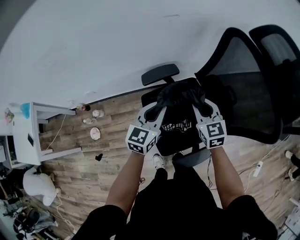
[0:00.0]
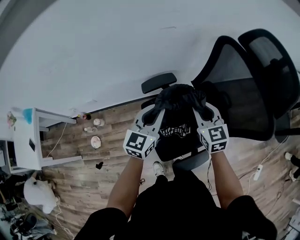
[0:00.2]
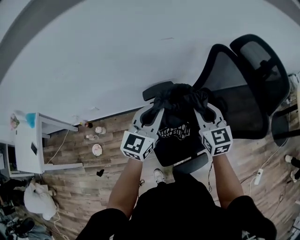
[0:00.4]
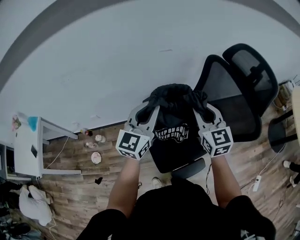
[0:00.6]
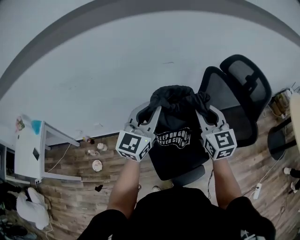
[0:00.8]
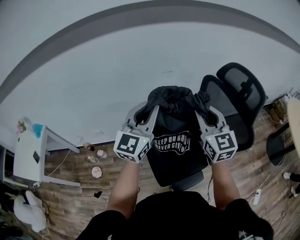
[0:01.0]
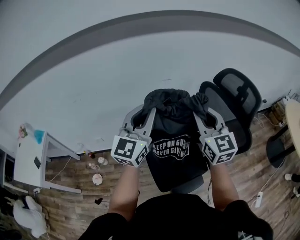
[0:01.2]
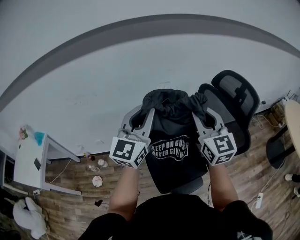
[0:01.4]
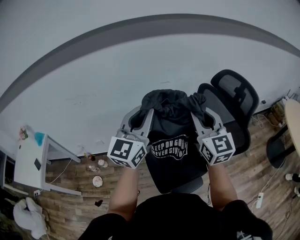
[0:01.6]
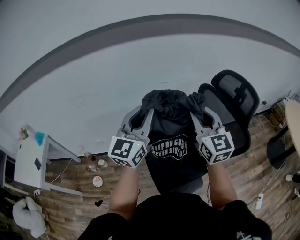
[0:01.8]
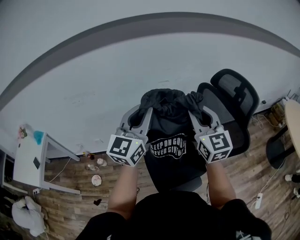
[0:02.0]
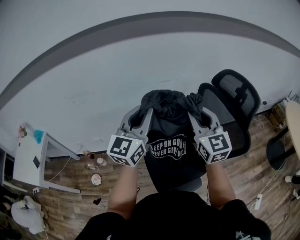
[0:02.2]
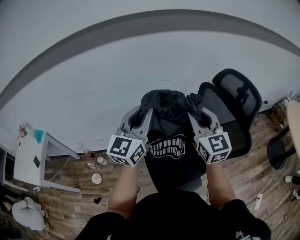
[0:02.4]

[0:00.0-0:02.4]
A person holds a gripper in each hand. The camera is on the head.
0:00.0 to 0:01.2: Both grippers travel together upward, some 35 cm. The left gripper turns by some 30 degrees. The right gripper changes its angle by some 30 degrees.
0:01.2 to 0:02.4: The grippers move only a little.

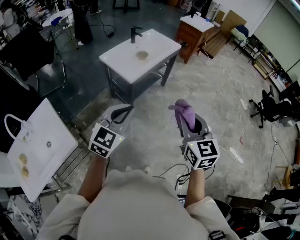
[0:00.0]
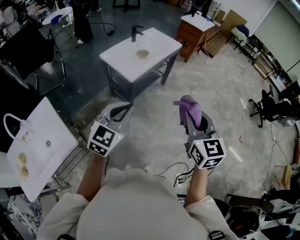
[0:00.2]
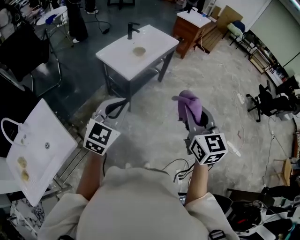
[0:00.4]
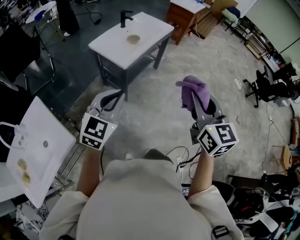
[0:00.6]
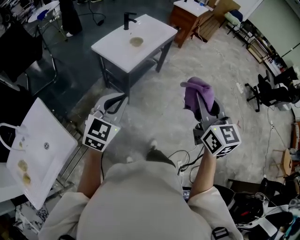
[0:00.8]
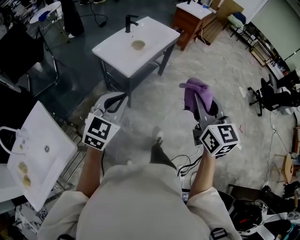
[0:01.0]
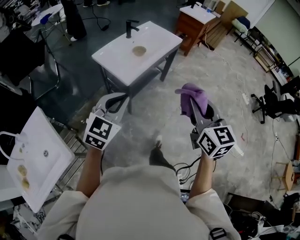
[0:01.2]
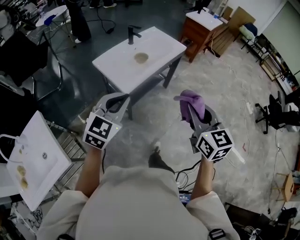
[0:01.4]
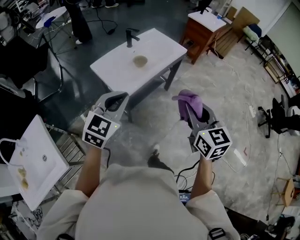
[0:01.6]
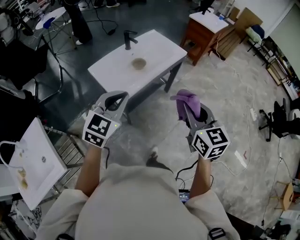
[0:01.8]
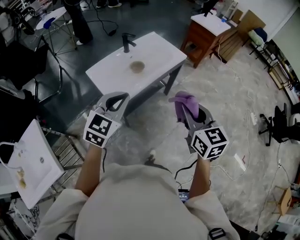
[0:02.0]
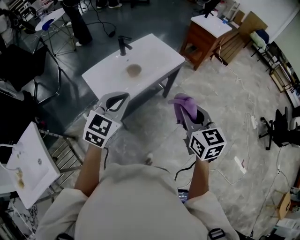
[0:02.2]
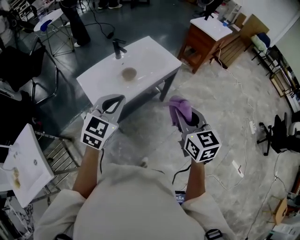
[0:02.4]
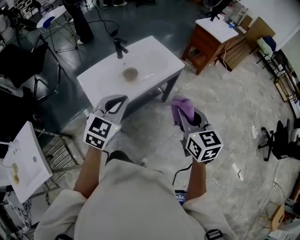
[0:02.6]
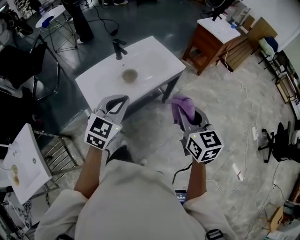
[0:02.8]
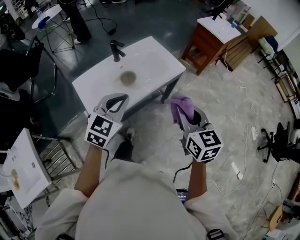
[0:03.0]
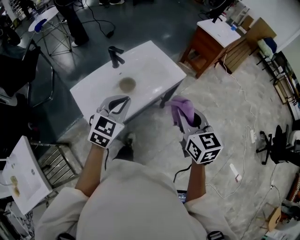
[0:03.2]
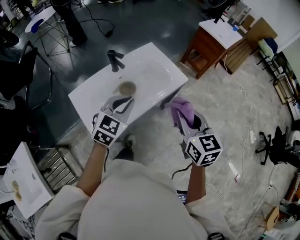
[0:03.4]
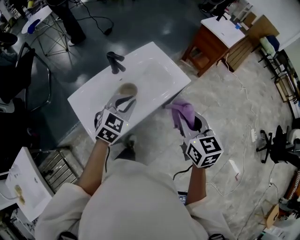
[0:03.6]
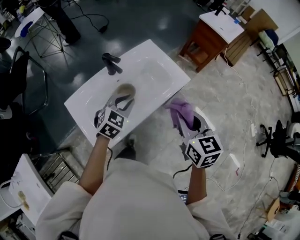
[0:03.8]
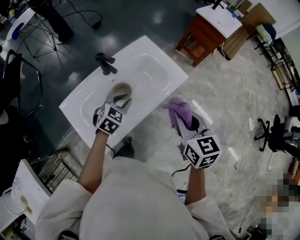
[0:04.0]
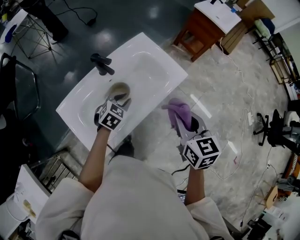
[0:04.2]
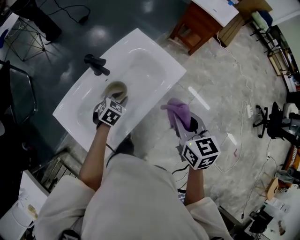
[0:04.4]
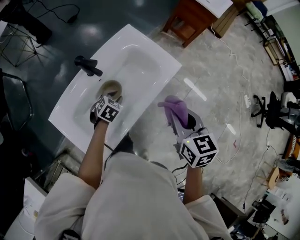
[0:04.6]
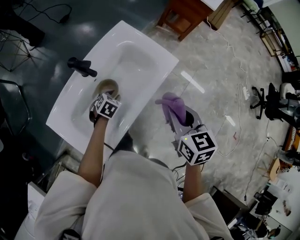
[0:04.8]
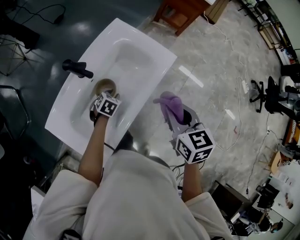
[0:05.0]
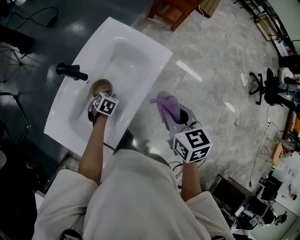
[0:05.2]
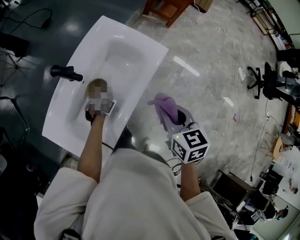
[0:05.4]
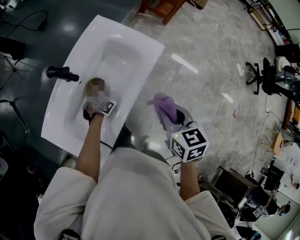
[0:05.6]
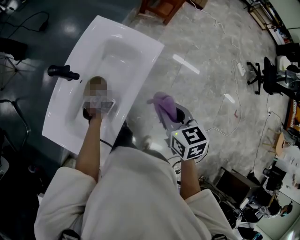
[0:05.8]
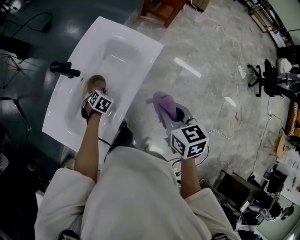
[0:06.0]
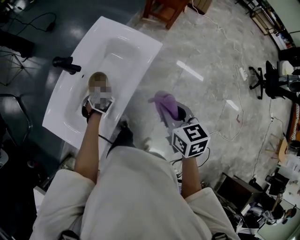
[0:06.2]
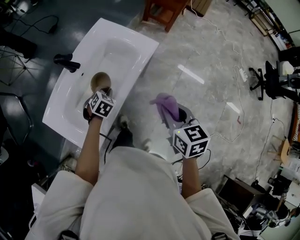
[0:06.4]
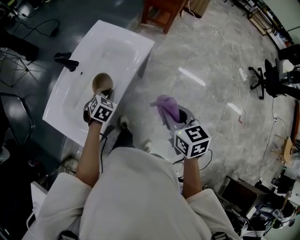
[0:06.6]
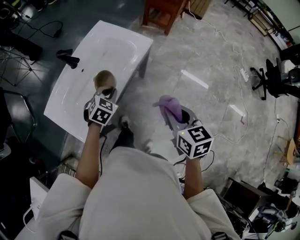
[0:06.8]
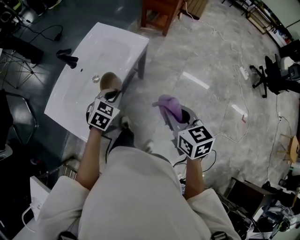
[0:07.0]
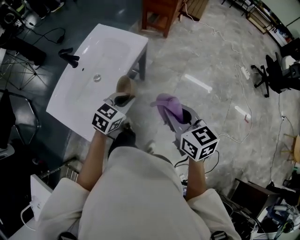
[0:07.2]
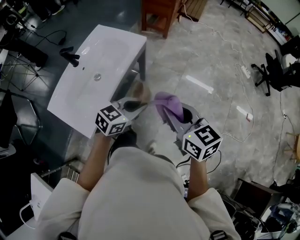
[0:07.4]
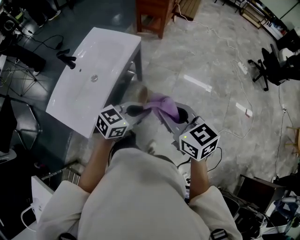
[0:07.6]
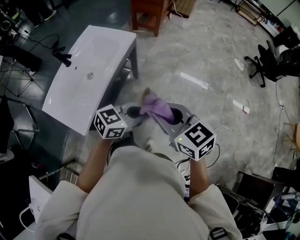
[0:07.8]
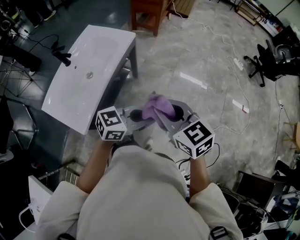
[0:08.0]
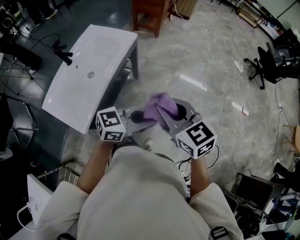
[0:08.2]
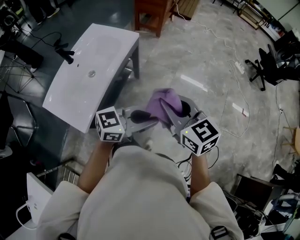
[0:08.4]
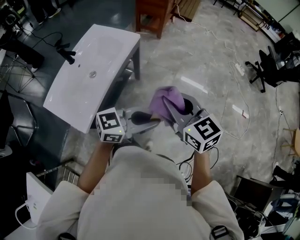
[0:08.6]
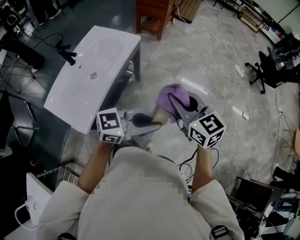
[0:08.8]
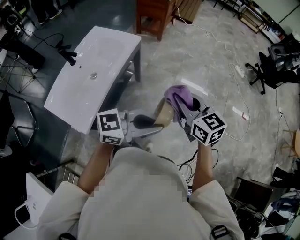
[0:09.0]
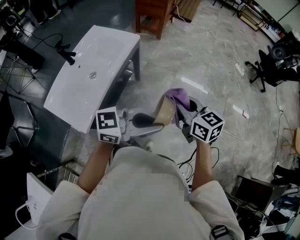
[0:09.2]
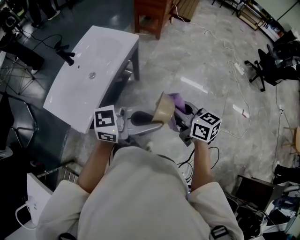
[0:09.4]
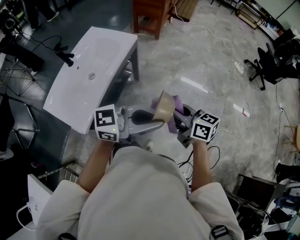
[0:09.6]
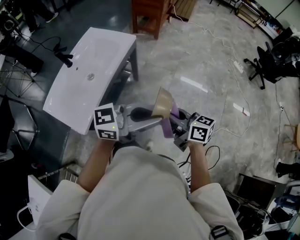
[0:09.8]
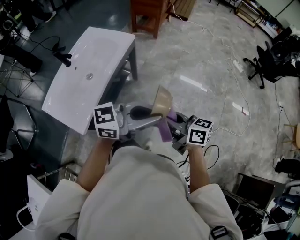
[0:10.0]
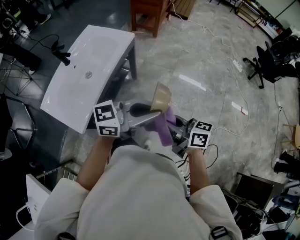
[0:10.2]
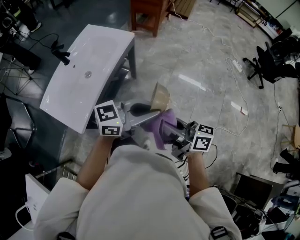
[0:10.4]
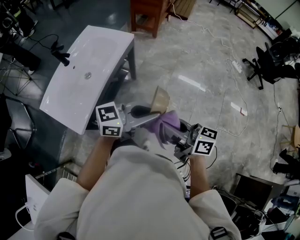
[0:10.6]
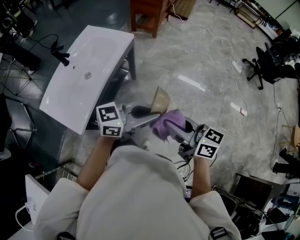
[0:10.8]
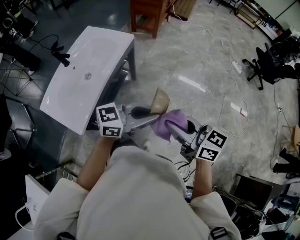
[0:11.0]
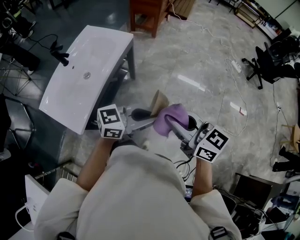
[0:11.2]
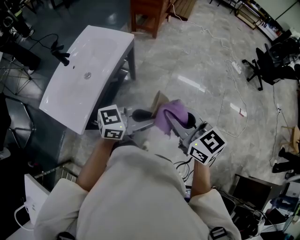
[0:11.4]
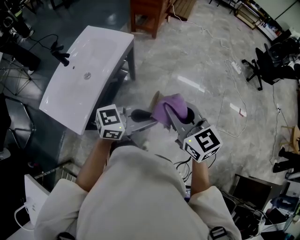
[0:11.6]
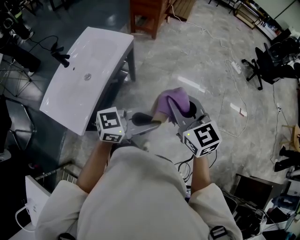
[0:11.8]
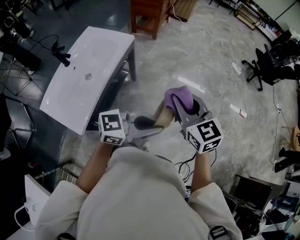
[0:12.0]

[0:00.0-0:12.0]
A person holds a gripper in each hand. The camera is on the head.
0:00.0 to 0:01.6: Both grippers move forward, approximately 30 cm.
0:01.6 to 0:03.0: The left gripper shifts roughly 30 cm forward and to the right, while the right gripper goes about 30 cm forward.
0:03.0 to 0:04.4: The right gripper shifts approximately 20 cm forward; the left gripper heads forward and downward, covering approximately 40 cm, swivels approximately 30 degrees, and opens.
0:04.4 to 0:06.0: The left gripper shifts approximately 15 cm downward, turns by roughly 20 degrees, and closes its fingers. Meanwhile the right gripper is displaced downward by some 5 cm.
0:06.0 to 0:07.6: The left gripper goes roughly 60 cm to the right, backward and upward, and angles its fingers upward, by about 50 degrees; the right gripper travels backward and to the right by about 30 cm, and swivels approximately 20 degrees.
0:07.6 to 0:09.0: The left gripper moves upward, backward and to the right, approximately 15 cm, and changes its angle by roughly 30 degrees, while the right gripper heads to the right, covering about 5 cm.
0:09.0 to 0:10.4: The right gripper shifts by about 10 cm, and changes its angle by approximately 50 degrees.
0:10.4 to 0:12.0: The left gripper changes place by about 5 cm; the right gripper ends up about 10 cm from where it was, and swivels some 60 degrees.

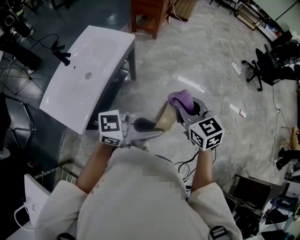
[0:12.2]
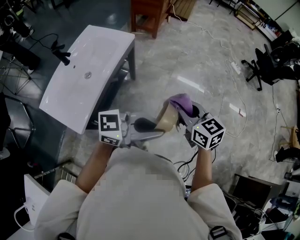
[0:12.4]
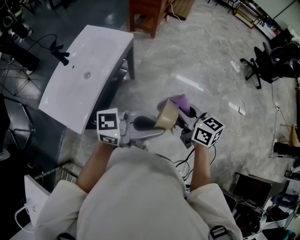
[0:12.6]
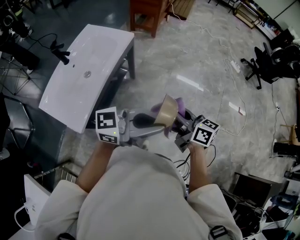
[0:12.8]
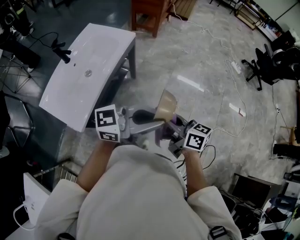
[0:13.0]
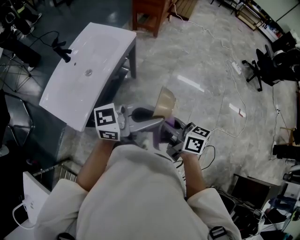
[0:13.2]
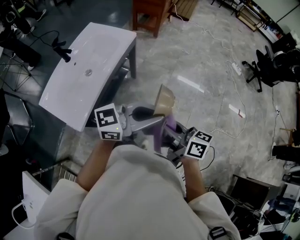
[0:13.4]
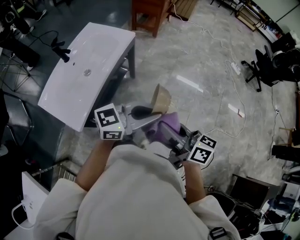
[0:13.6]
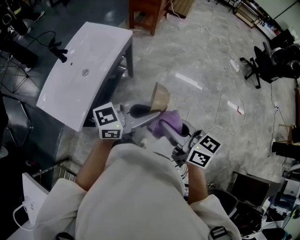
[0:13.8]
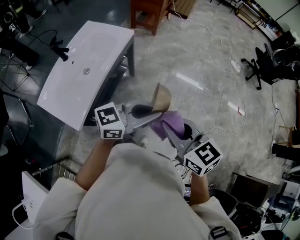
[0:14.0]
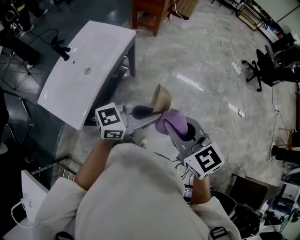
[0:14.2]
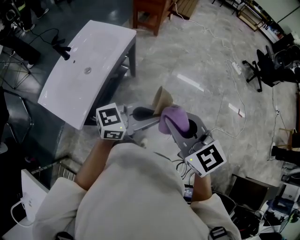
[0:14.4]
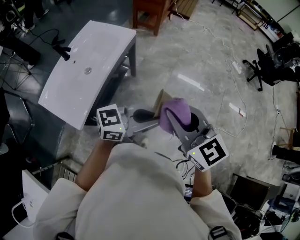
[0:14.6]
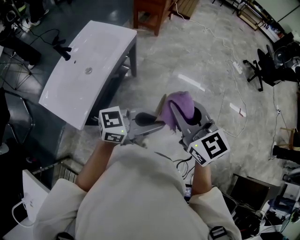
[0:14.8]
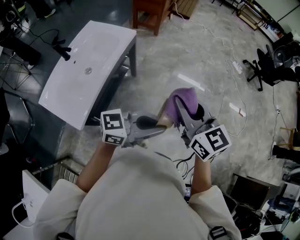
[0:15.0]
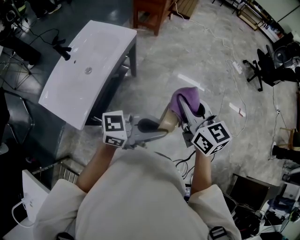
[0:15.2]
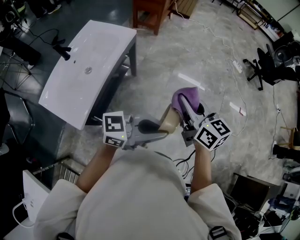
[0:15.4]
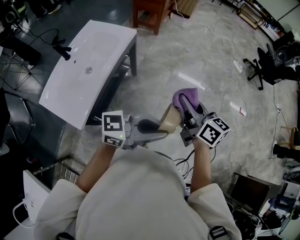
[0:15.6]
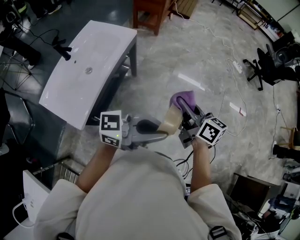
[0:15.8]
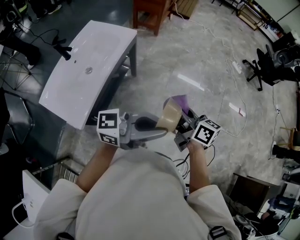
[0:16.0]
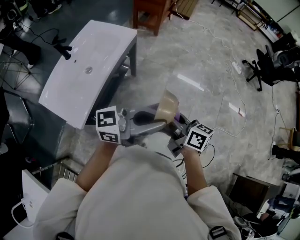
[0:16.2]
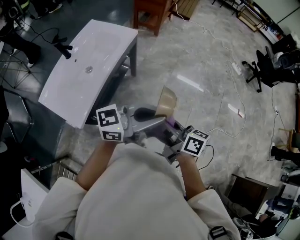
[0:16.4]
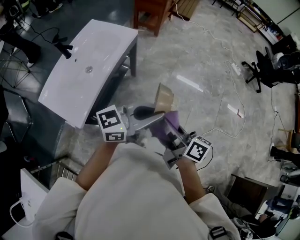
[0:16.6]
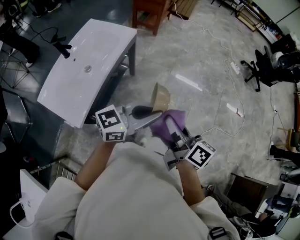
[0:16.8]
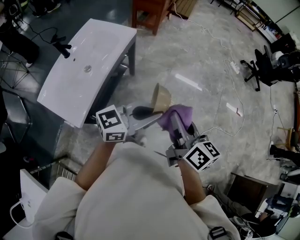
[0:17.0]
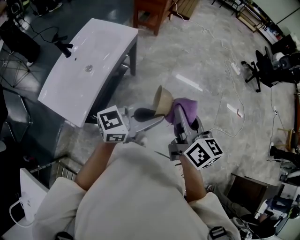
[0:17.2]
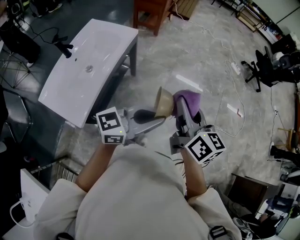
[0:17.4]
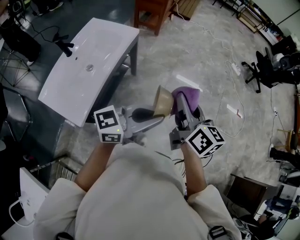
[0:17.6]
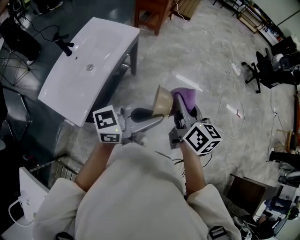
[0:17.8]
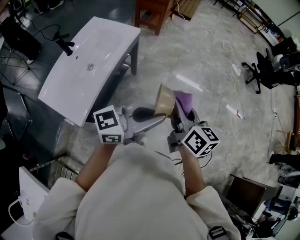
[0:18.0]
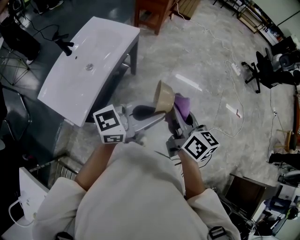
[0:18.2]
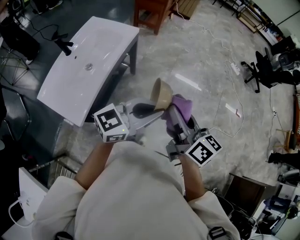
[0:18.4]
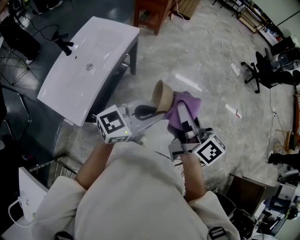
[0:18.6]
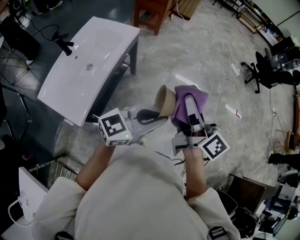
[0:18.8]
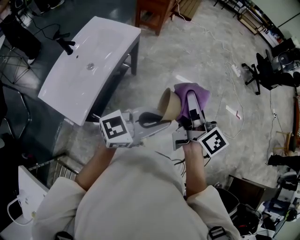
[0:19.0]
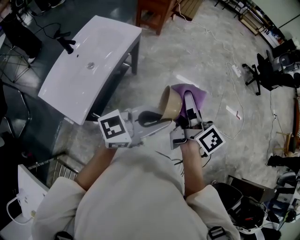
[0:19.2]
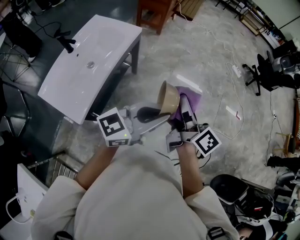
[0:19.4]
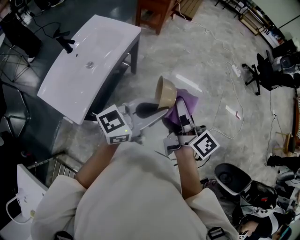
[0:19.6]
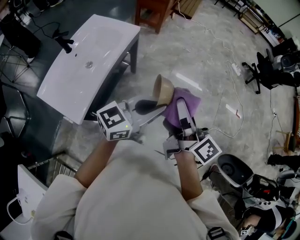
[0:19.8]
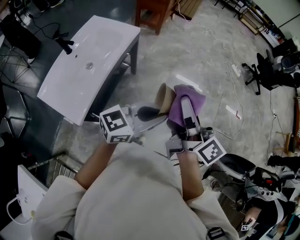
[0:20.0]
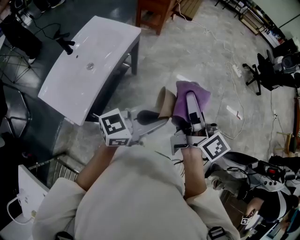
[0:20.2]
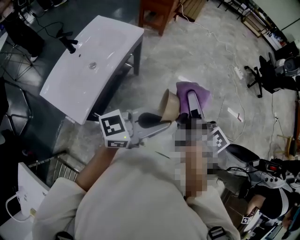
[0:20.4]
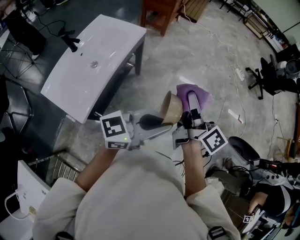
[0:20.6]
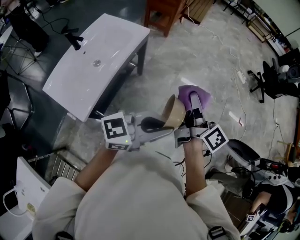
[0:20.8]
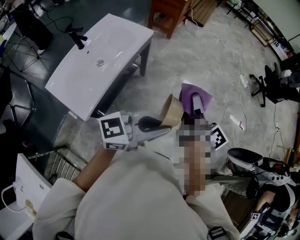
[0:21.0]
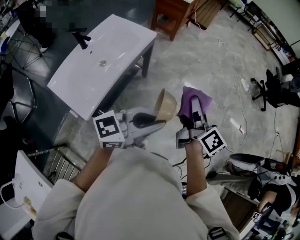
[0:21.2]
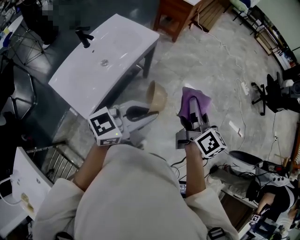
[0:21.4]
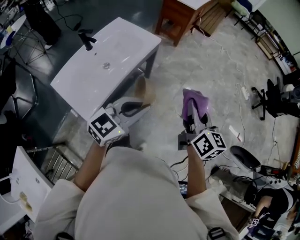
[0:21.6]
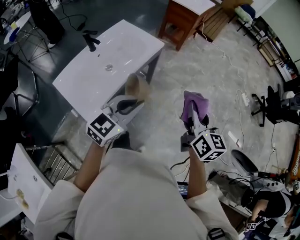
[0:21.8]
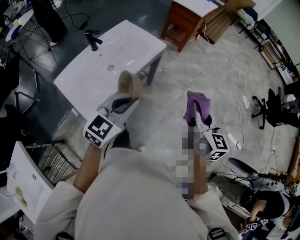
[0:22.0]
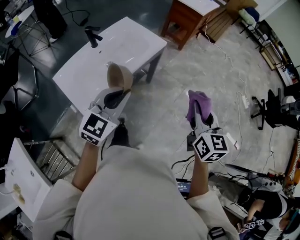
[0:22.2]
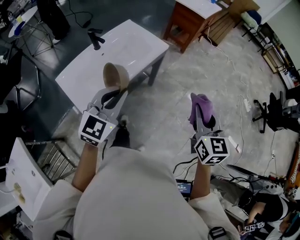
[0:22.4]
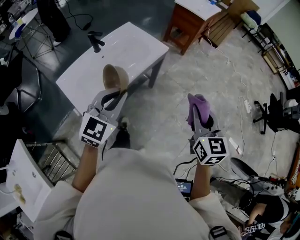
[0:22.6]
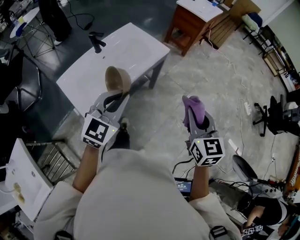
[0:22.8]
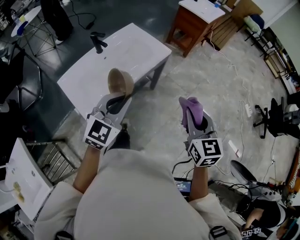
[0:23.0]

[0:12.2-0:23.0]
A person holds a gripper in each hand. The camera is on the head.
0:12.2 to 0:13.8: The right gripper shifts by roughly 10 cm, and turns by roughly 30 degrees. Meanwhile the left gripper shifts by roughly 5 cm.
0:13.8 to 0:15.2: The right gripper shifts some 10 cm forward, and changes its angle by roughly 20 degrees. The left gripper travels backward by roughly 5 cm.
0:15.2 to 0:16.8: The left gripper changes place by some 5 cm, while the right gripper moves roughly 10 cm, and rolls clockwise, seen from behind, by about 40 degrees.
0:18.4 to 0:20.0: The right gripper shifts by some 5 cm.
0:20.0 to 0:21.4: The left gripper moves to the left, about 10 cm; the right gripper moves forward, approximately 5 cm.
0:21.4 to 0:23.0: The right gripper ends up approximately 5 cm from where it was, and rotates around the line of its fingers by about 50 degrees, counterclockwise from behind; the left gripper shifts by some 15 cm, and turns by some 50 degrees.
